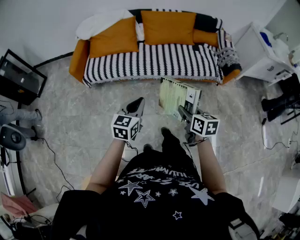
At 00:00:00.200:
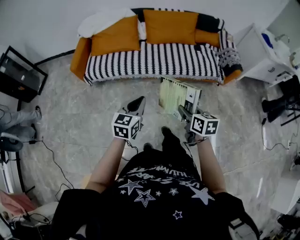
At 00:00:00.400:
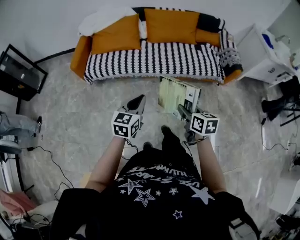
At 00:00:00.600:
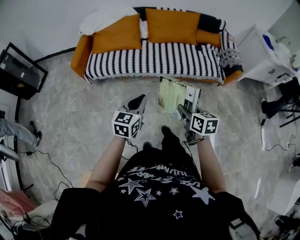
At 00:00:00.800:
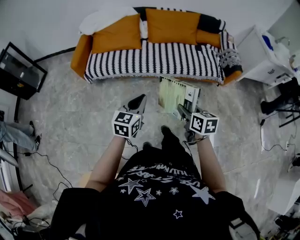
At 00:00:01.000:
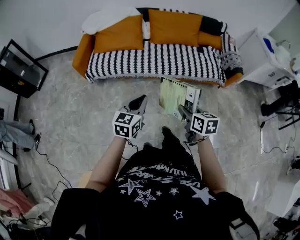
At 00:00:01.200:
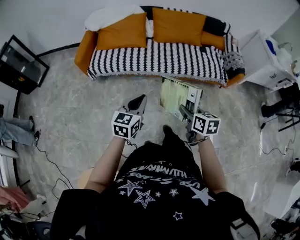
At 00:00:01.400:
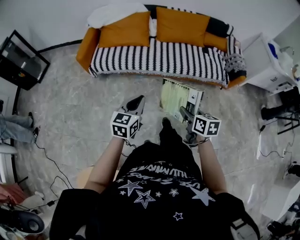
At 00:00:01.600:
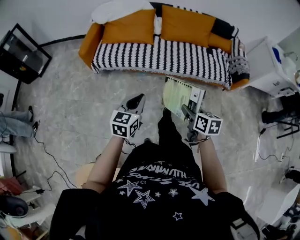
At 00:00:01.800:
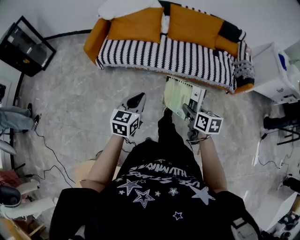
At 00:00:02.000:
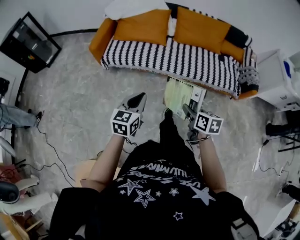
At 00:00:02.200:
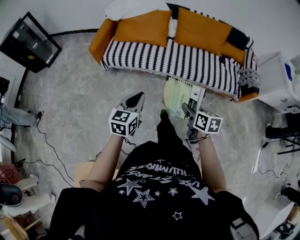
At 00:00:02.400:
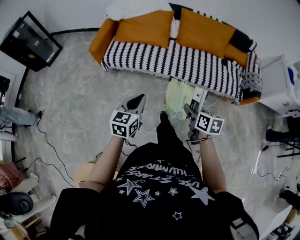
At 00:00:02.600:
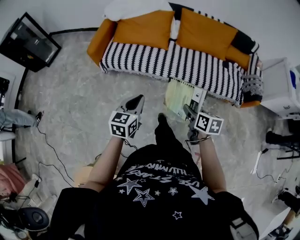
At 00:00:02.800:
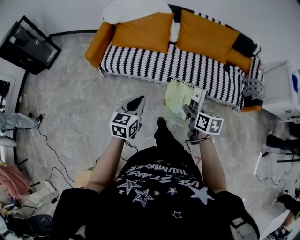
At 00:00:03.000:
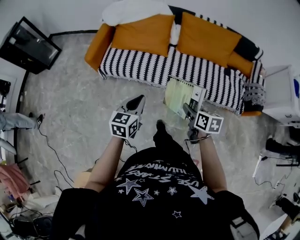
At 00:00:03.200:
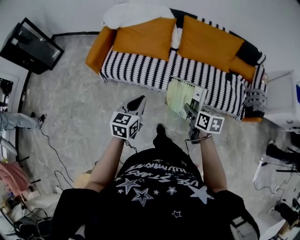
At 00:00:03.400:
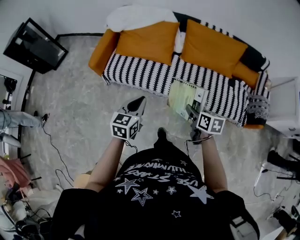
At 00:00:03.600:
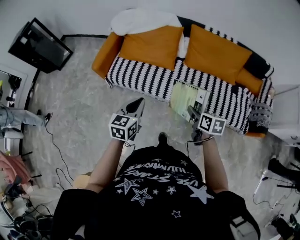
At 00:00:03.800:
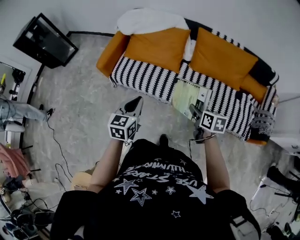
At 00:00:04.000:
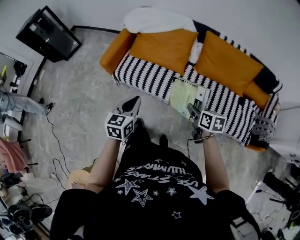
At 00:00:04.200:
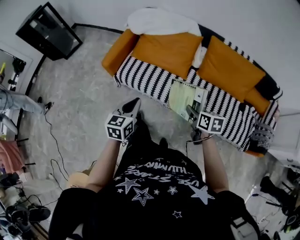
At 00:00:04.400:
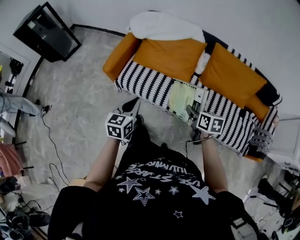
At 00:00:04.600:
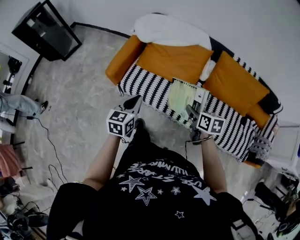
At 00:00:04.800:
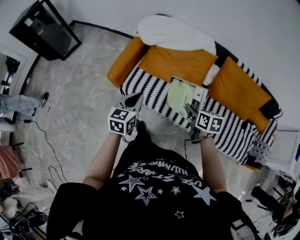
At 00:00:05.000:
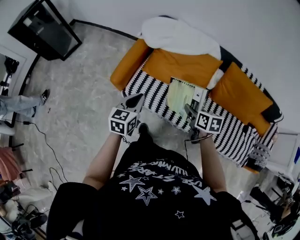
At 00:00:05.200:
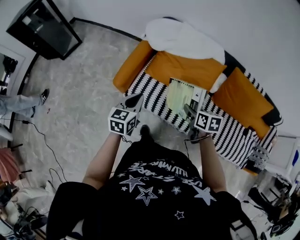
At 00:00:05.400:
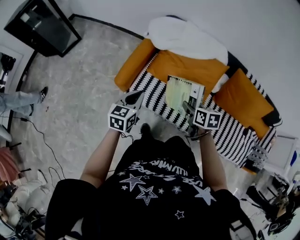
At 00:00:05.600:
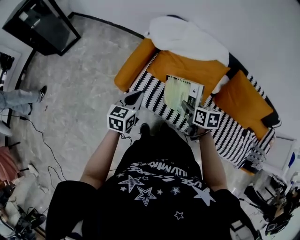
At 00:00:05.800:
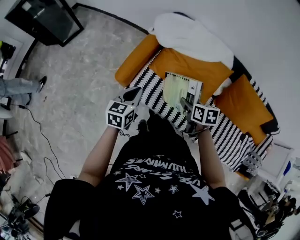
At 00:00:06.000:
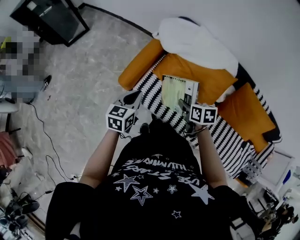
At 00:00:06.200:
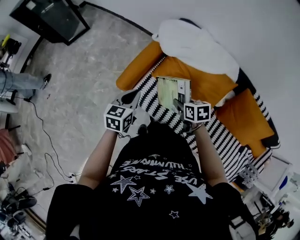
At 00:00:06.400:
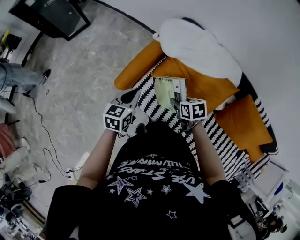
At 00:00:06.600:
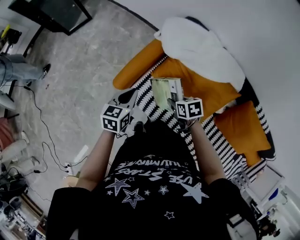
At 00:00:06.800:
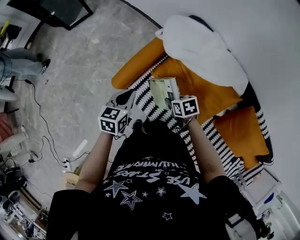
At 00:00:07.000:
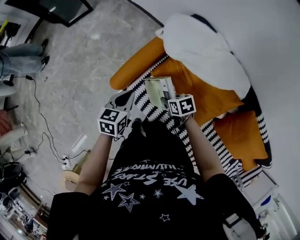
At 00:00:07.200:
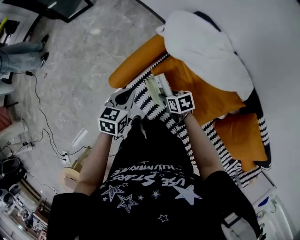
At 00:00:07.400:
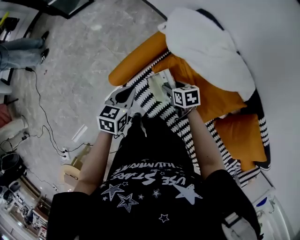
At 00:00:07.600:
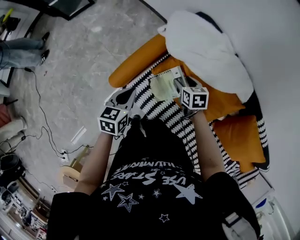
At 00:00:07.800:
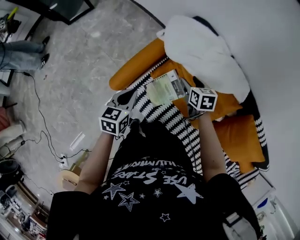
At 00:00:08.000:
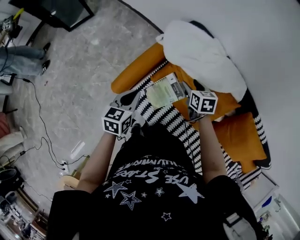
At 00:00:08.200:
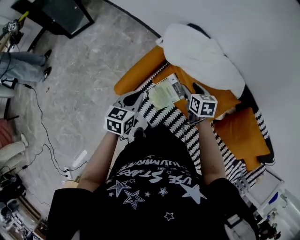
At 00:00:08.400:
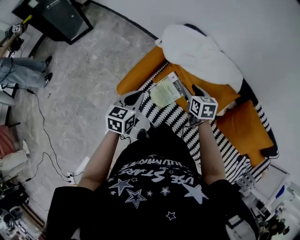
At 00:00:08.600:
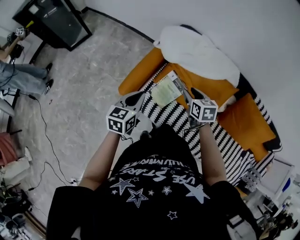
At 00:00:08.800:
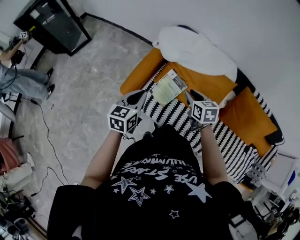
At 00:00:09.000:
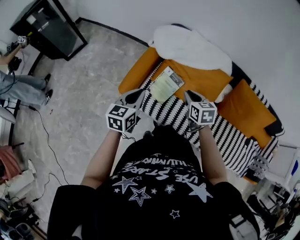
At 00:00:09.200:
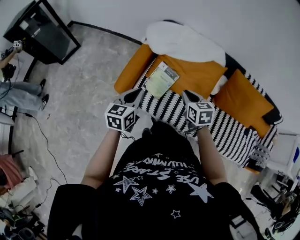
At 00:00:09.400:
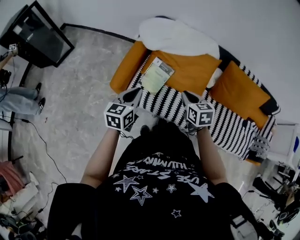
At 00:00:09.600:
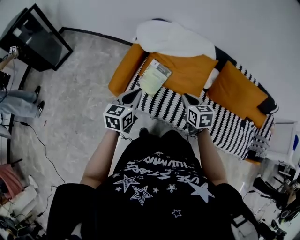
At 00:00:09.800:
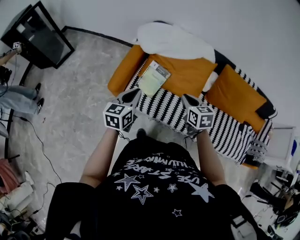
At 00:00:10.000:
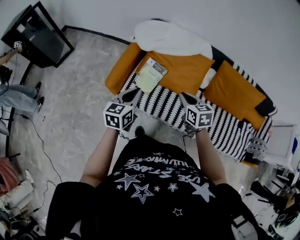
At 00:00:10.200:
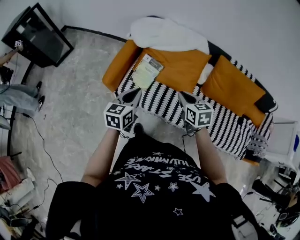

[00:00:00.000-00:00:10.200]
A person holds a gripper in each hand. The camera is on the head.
00:00:00.000 to 00:00:01.400: The two grippers go approximately 5 cm to the left.
00:00:01.400 to 00:00:03.000: The two grippers go approximately 25 cm forward.
00:00:03.000 to 00:00:04.400: The right gripper is displaced forward by some 25 cm. The left gripper goes about 20 cm forward and to the left.
00:00:04.400 to 00:00:05.800: The two grippers go about 30 cm forward and to the left.
00:00:05.800 to 00:00:07.200: The left gripper shifts by roughly 15 cm. The right gripper changes place by some 25 cm, and changes its angle by some 40 degrees.
00:00:07.200 to 00:00:08.800: The left gripper moves upward, roughly 10 cm, and changes its angle by some 20 degrees; the right gripper goes about 20 cm upward, and changes its angle by approximately 40 degrees.
00:00:08.800 to 00:00:10.200: Both grippers travel together backward and to the right, some 20 cm.

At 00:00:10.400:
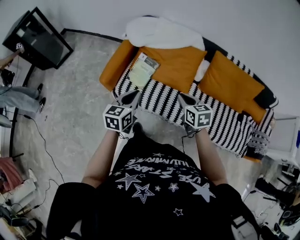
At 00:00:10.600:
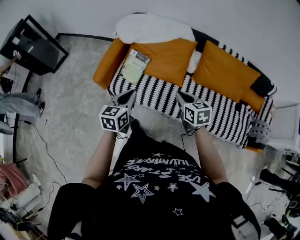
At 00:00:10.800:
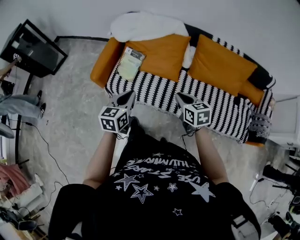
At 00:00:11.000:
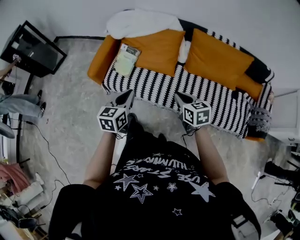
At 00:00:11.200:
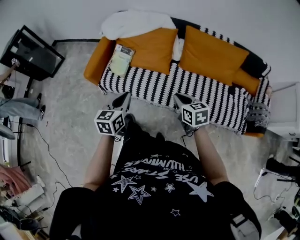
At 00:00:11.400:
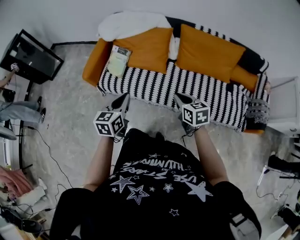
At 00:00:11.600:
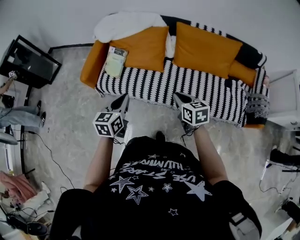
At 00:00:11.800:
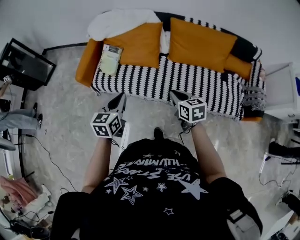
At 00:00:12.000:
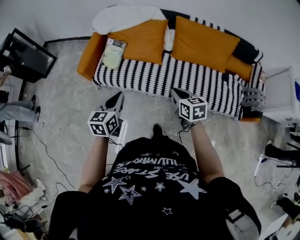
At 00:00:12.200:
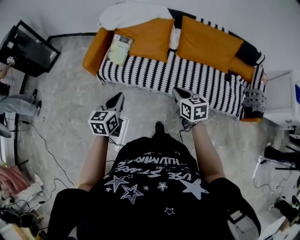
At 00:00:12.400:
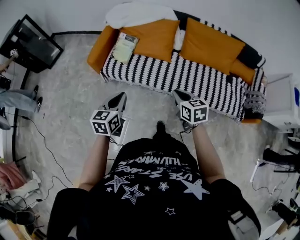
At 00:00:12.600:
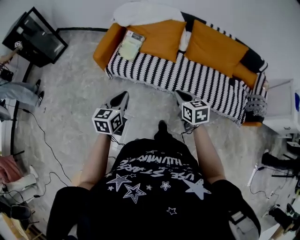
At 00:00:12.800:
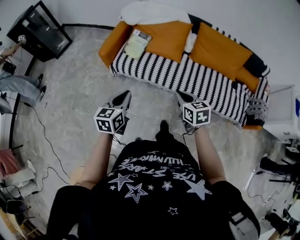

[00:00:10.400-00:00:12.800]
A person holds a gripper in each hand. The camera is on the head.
00:00:10.400 to 00:00:11.600: Both grippers travel together backward and to the right, some 25 cm.
00:00:11.600 to 00:00:12.800: The two grippers go about 20 cm to the left and backward.

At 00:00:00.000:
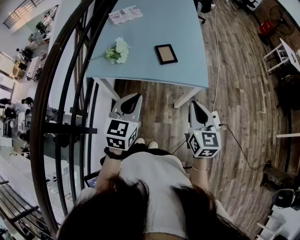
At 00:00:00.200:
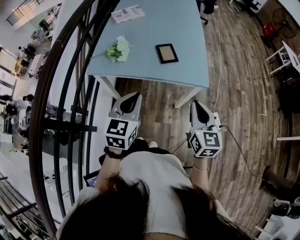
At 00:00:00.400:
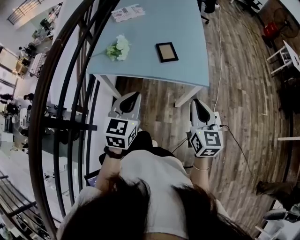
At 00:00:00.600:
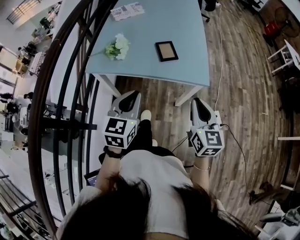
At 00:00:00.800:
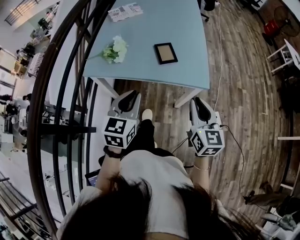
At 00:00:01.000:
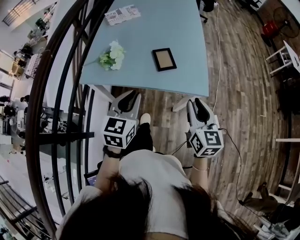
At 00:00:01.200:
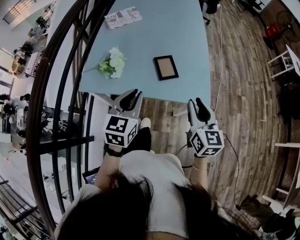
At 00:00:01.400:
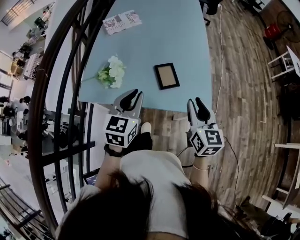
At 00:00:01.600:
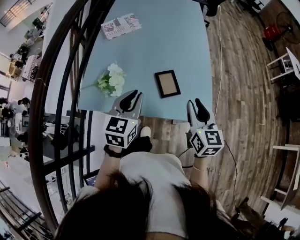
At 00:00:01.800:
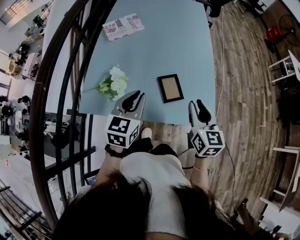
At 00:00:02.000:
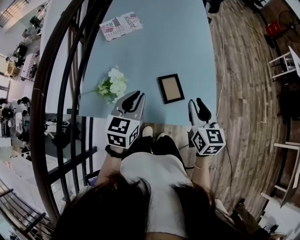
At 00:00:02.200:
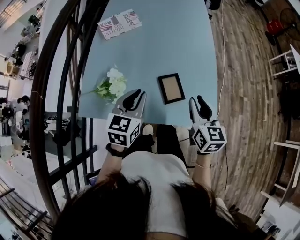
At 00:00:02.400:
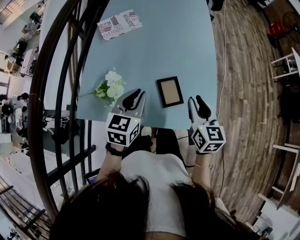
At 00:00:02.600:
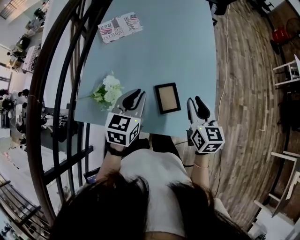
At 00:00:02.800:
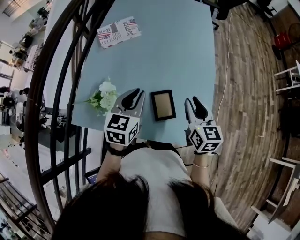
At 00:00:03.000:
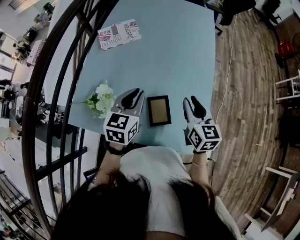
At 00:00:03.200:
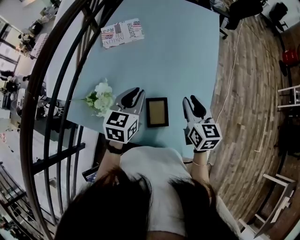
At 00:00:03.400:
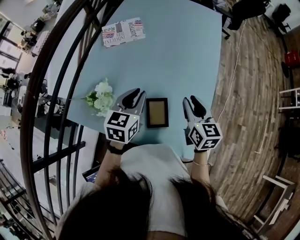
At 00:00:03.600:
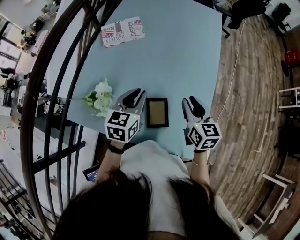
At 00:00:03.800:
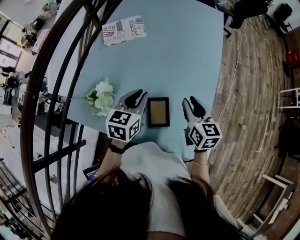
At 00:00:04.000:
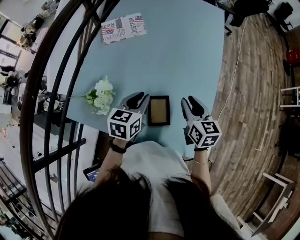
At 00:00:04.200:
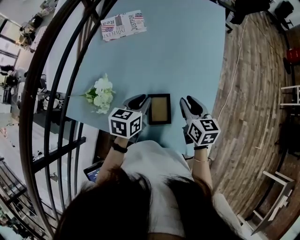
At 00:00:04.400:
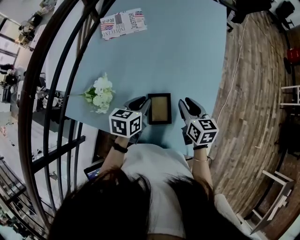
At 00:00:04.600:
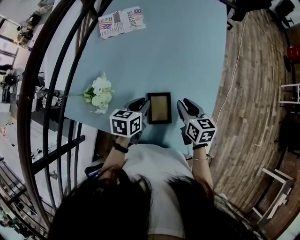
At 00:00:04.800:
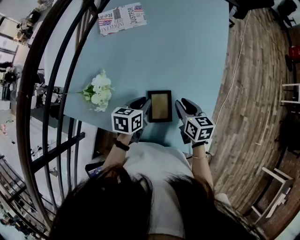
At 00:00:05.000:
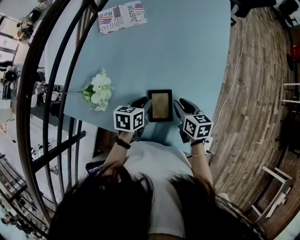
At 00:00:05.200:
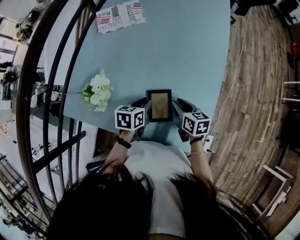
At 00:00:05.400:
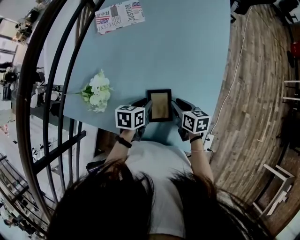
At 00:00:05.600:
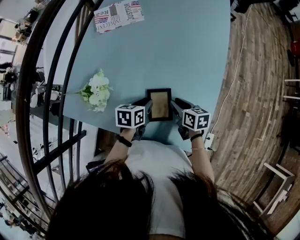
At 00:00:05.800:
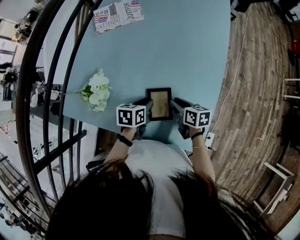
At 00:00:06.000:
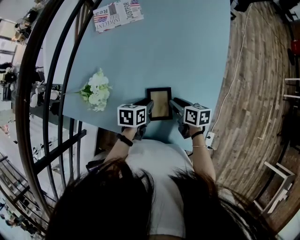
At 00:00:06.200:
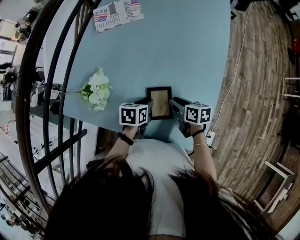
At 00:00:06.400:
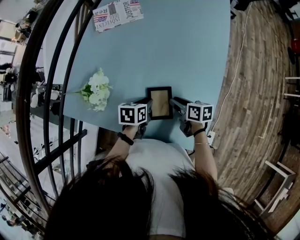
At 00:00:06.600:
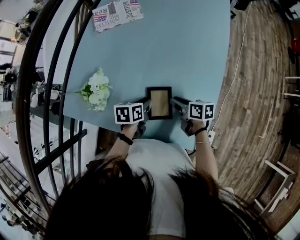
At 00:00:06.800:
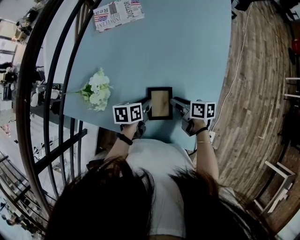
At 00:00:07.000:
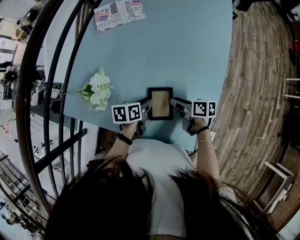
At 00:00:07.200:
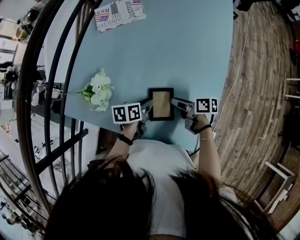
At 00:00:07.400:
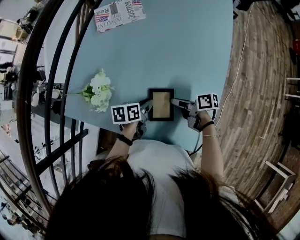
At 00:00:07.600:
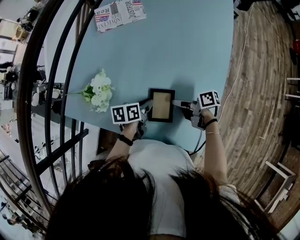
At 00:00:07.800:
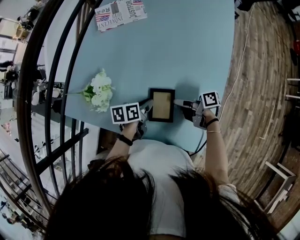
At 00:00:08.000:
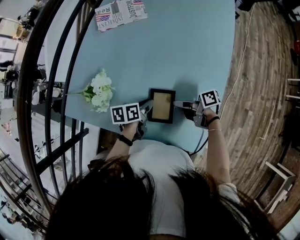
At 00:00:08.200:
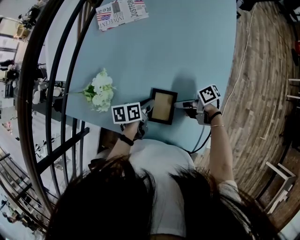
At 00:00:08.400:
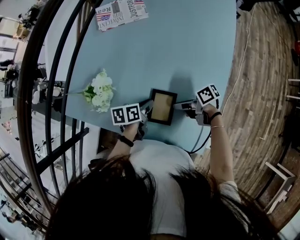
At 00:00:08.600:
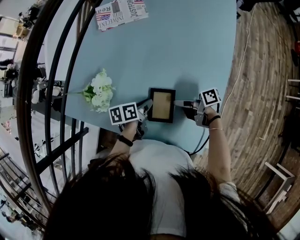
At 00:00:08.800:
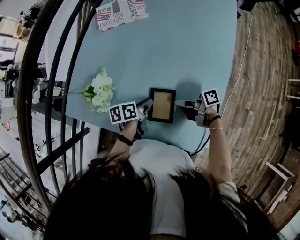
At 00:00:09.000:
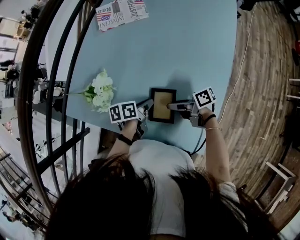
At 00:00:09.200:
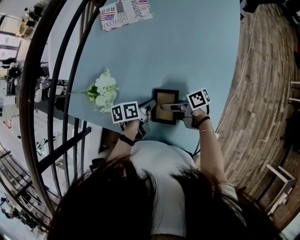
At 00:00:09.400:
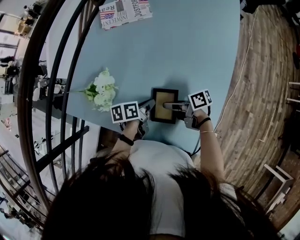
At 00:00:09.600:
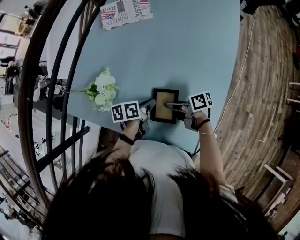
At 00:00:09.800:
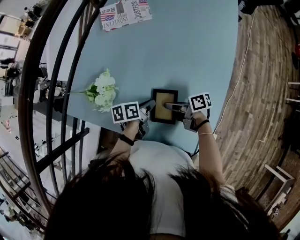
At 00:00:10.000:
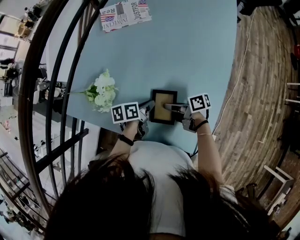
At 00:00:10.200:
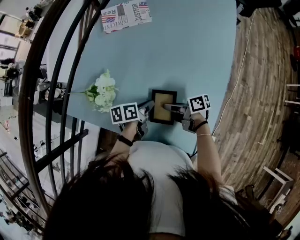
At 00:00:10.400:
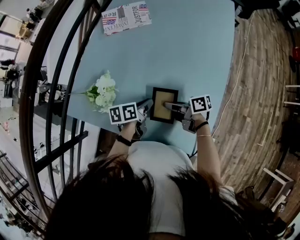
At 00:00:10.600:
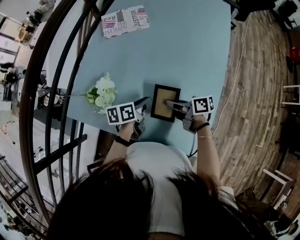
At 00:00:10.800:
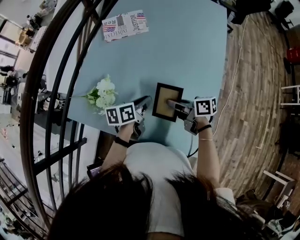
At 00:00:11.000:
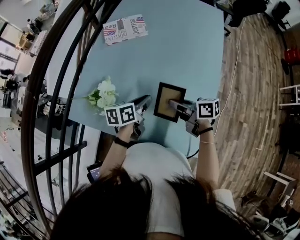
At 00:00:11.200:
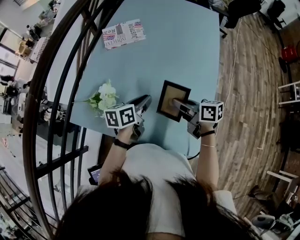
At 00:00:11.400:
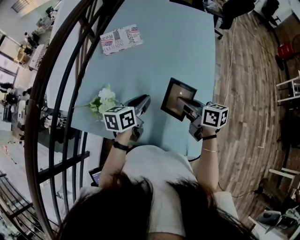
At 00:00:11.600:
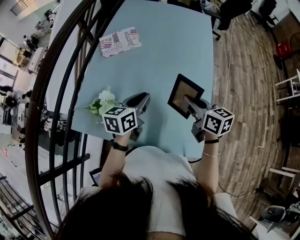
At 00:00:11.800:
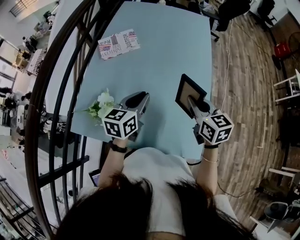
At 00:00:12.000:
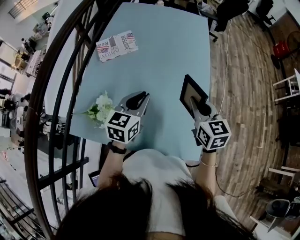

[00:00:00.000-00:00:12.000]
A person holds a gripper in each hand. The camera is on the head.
00:00:00.000 to 00:00:01.600: Both grippers move forward, roughly 25 cm.
00:00:01.600 to 00:00:03.000: Both grippers travel together forward, some 20 cm.
00:00:03.000 to 00:00:04.400: Both grippers travel together downward, approximately 10 cm. The left gripper rotates about 30 degrees.
00:00:04.400 to 00:00:06.000: Both grippers move downward, some 10 cm. The right gripper changes its angle by roughly 30 degrees.
00:00:06.000 to 00:00:07.600: The right gripper rotates some 40 degrees.
00:00:07.600 to 00:00:09.000: There are only small adjustments of the grippers.
00:00:09.000 to 00:00:10.400: The right gripper closes its fingers.
00:00:10.400 to 00:00:12.000: Both grippers travel together upward, some 20 cm. The left gripper rolls clockwise, seen from behind, by approximately 50 degrees. The right gripper changes its angle by about 80 degrees.
